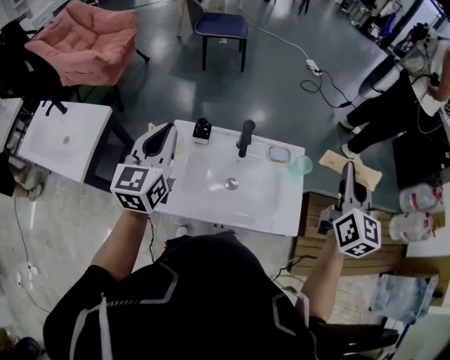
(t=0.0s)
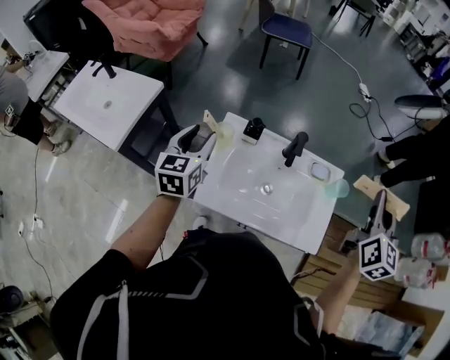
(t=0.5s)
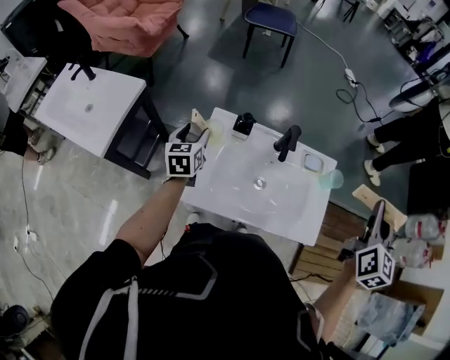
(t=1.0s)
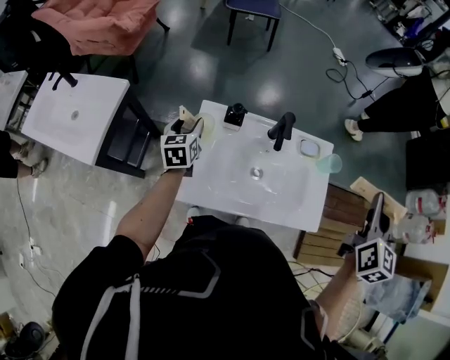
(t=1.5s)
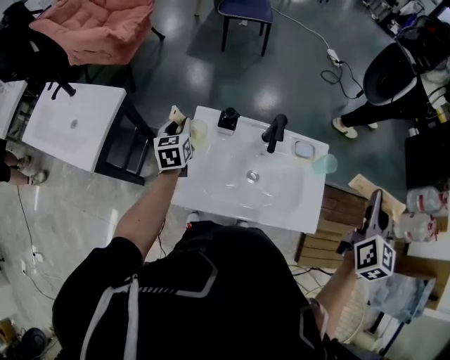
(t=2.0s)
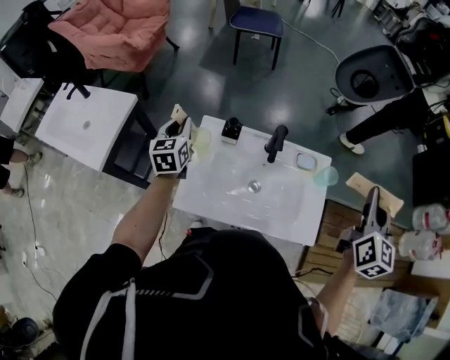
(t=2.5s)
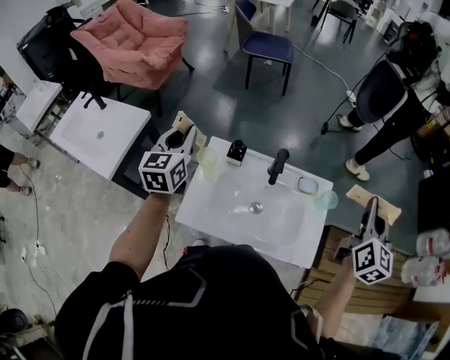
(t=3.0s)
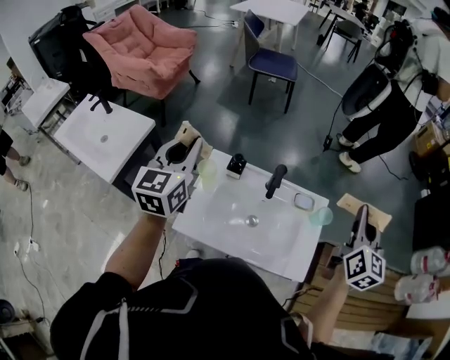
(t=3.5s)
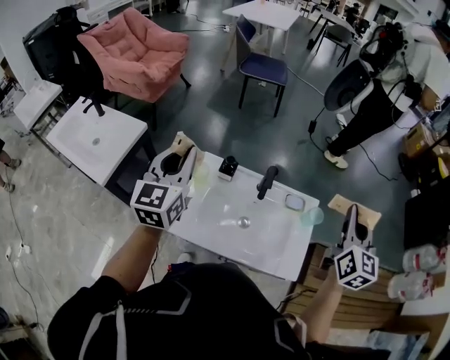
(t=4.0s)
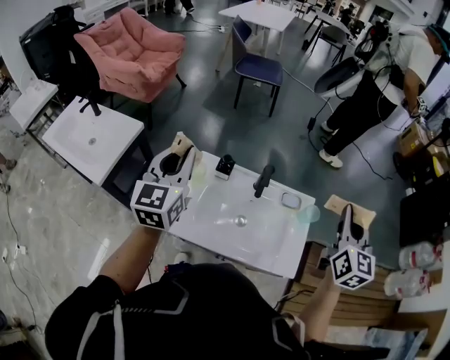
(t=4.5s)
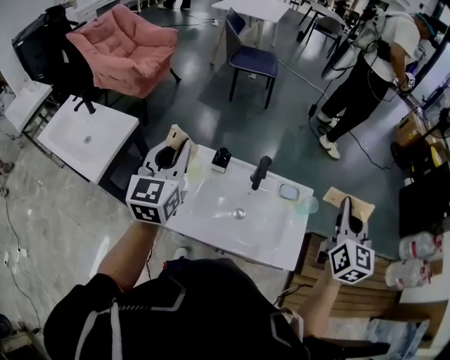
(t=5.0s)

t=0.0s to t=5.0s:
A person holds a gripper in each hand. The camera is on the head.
t=0.0s to t=2.5s: The left gripper travels downward, to the left and forward by some 20 cm, turns by some 20 degrees, and opens, then closes again.
t=2.5s to t=5.0s: The left gripper heads upward and backward, covering some 20 cm.

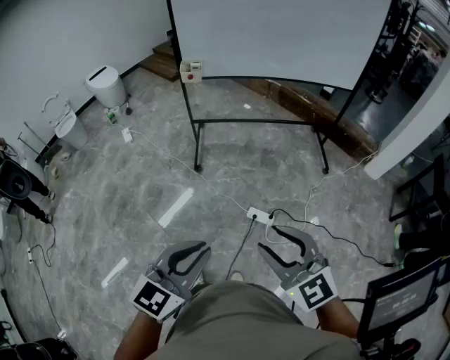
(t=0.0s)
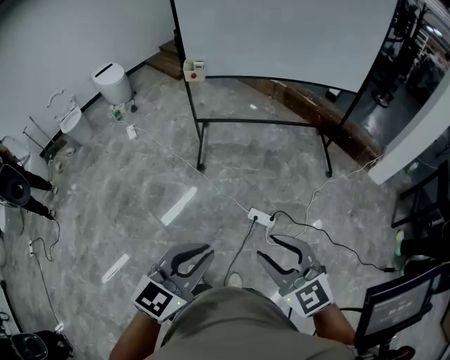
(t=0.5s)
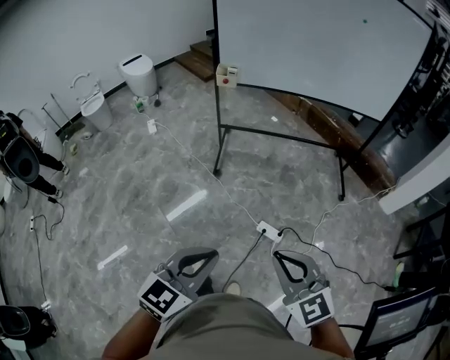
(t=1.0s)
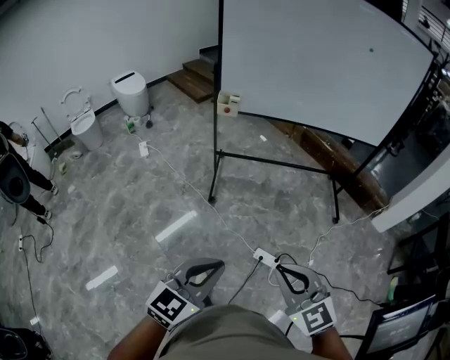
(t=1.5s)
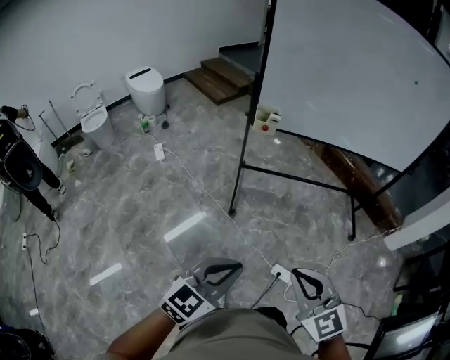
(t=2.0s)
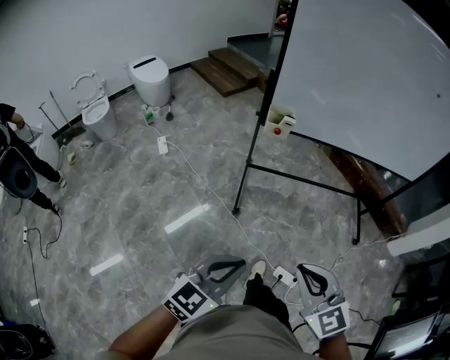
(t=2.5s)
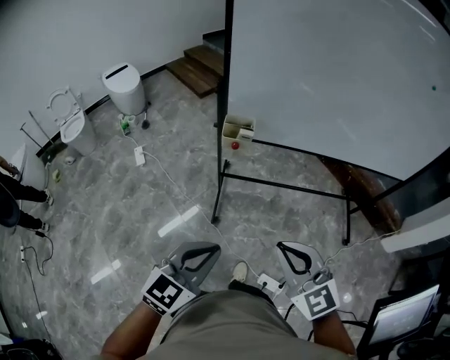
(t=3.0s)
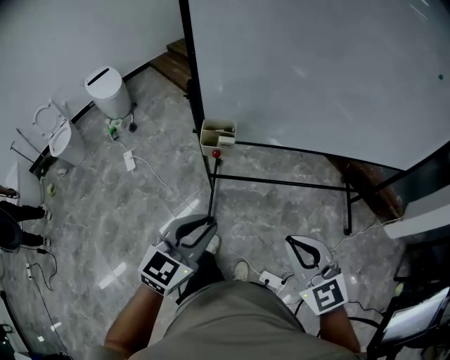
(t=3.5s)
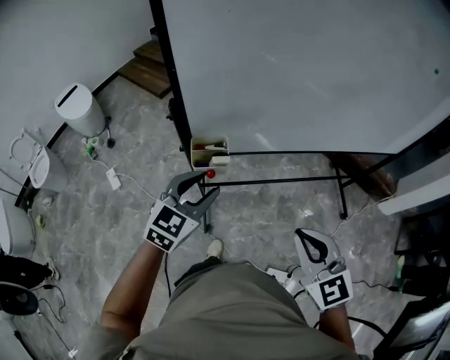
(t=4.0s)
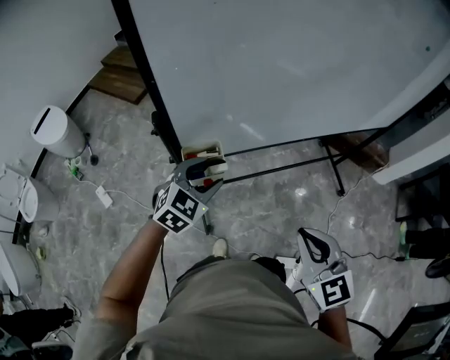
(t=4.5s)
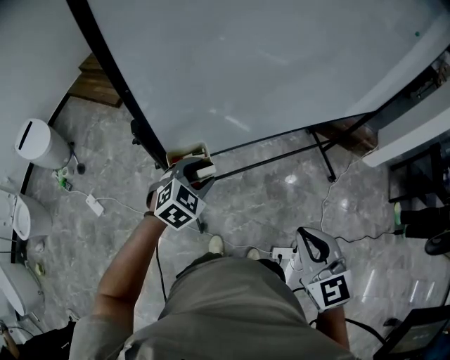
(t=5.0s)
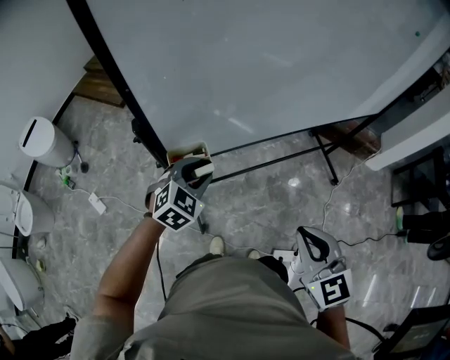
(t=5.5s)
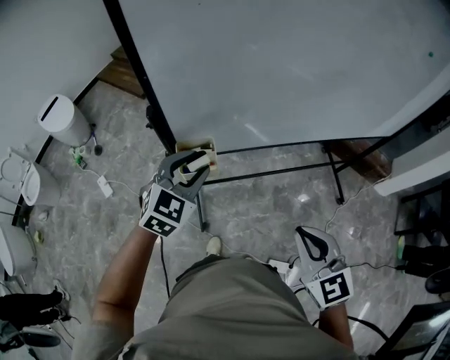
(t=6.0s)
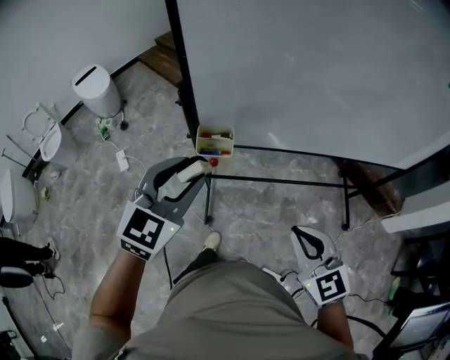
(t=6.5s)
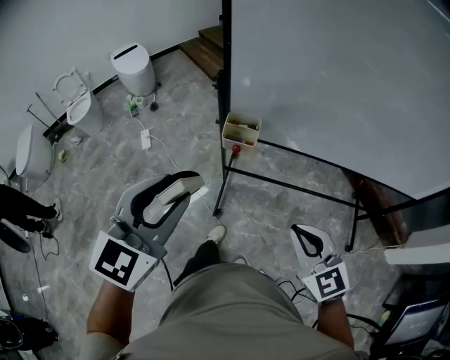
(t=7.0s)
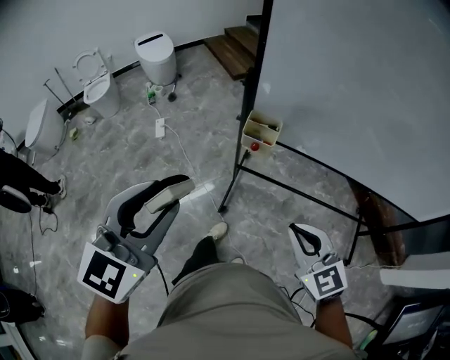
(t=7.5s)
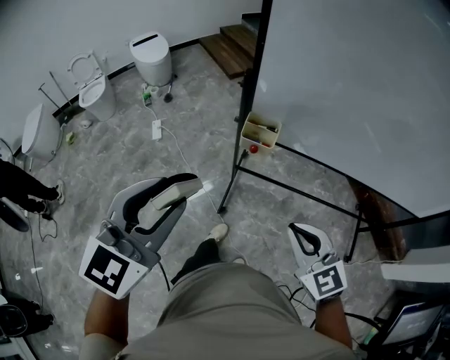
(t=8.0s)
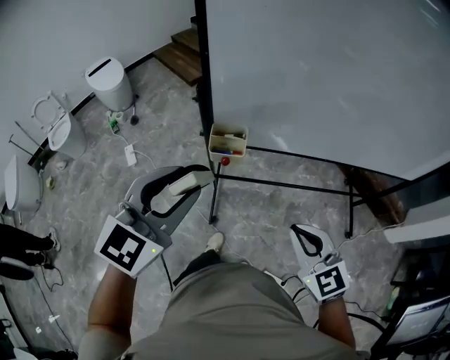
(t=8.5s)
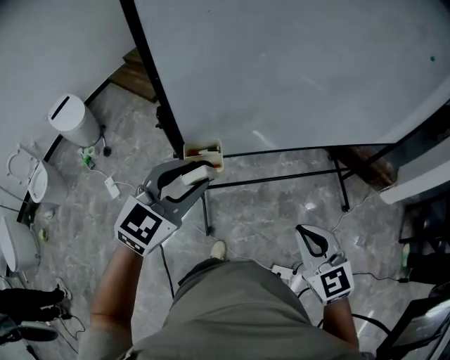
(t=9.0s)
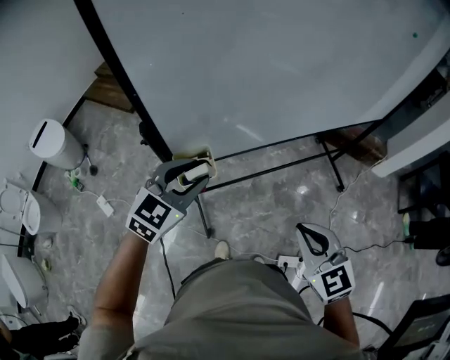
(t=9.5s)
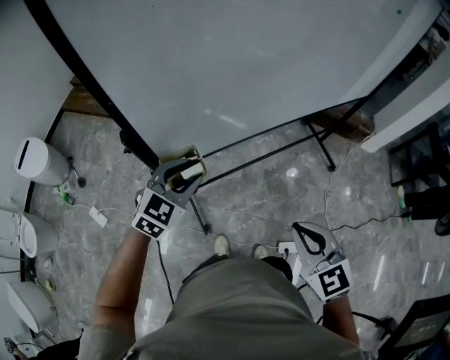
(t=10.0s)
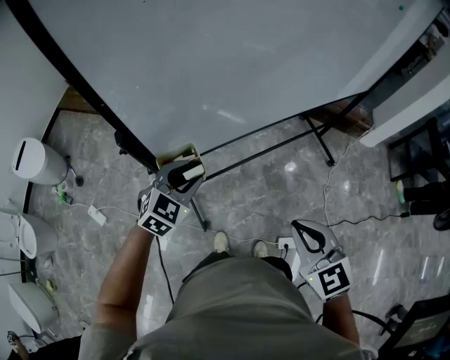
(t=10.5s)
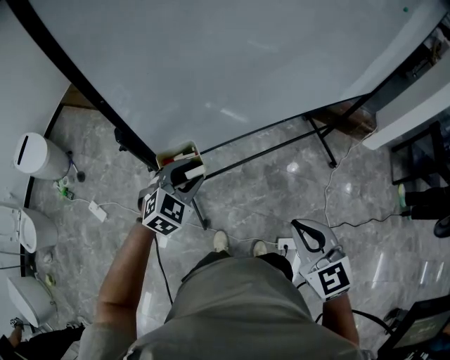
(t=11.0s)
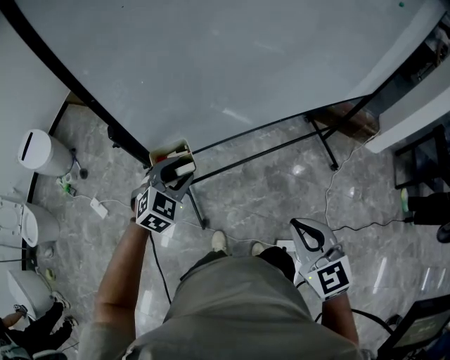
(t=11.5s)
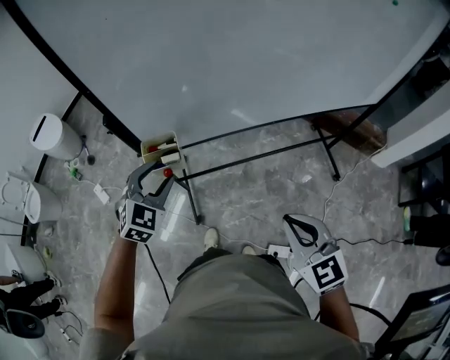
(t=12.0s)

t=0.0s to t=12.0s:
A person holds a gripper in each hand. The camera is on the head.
t=0.0s to t=2.0s: The two grippers go approximately 30 cm forward and to the left. The right gripper closes.
t=2.0s to t=4.0s: The pair of grippers is taken forward, about 50 cm. The left gripper opens up.
t=4.0s to t=6.0s: The left gripper travels forward by approximately 5 cm, and goes downward and returns, about 10 cm each way.
t=6.0s to t=8.0s: The left gripper shifts by some 35 cm, and changes its angle by about 30 degrees, while the right gripper shifts by about 5 cm, and changes its angle by roughly 30 degrees.
t=8.0s to t=10.0s: The right gripper shifts by roughly 5 cm, and swivels some 50 degrees; the left gripper changes place by approximately 40 cm, and swivels about 50 degrees.
t=10.0s to t=12.0s: The left gripper changes its angle by some 30 degrees; the right gripper moves to the right, some 10 cm.

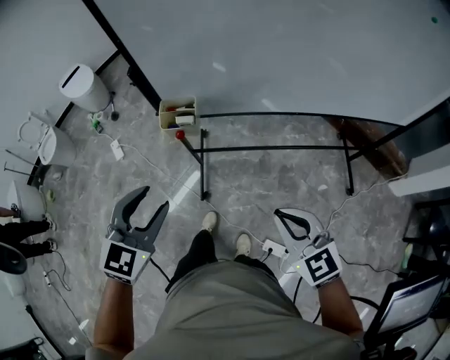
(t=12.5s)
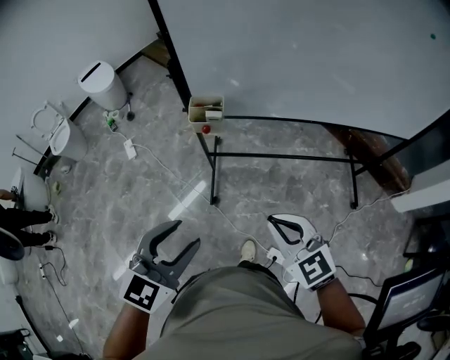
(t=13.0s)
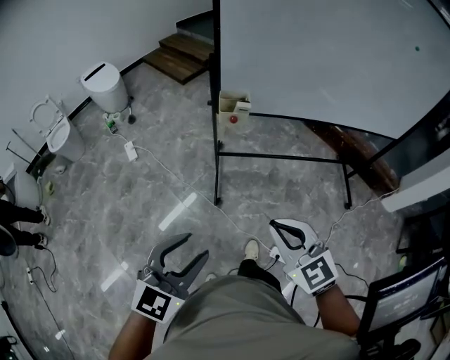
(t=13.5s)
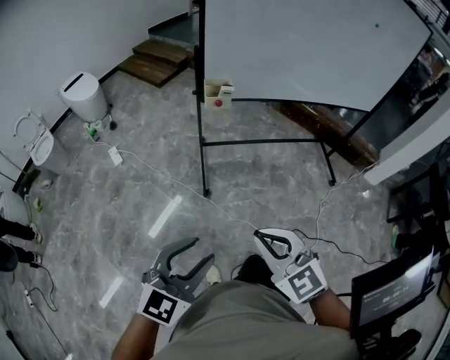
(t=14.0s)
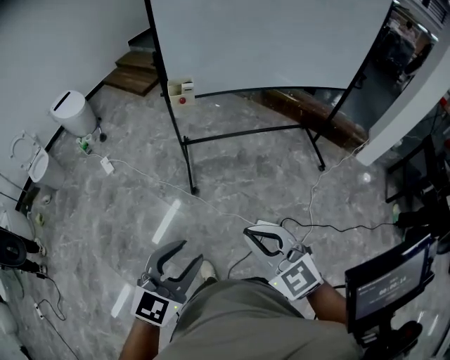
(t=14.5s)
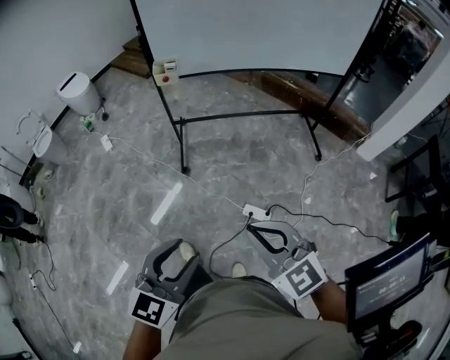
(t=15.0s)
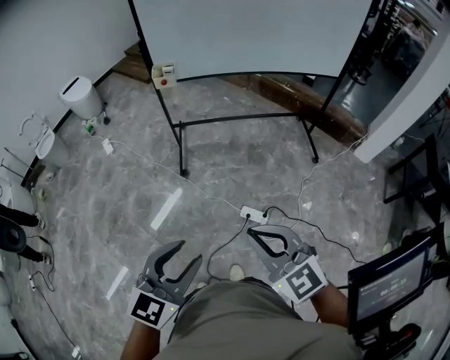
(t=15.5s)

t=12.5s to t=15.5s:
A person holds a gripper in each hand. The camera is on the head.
t=12.5s to t=14.0s: The right gripper heads backward and to the left, covering about 40 cm, while the left gripper heads backward, covering about 35 cm, and turns by about 20 degrees.
t=14.0s to t=15.5s: Both grippers travel together to the right and backward, some 30 cm.

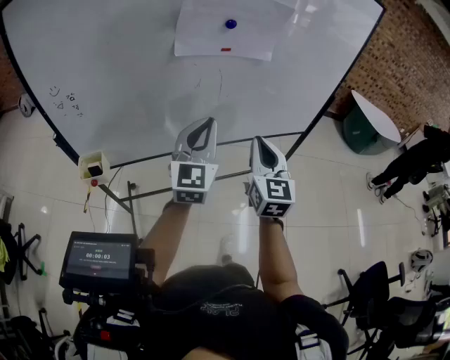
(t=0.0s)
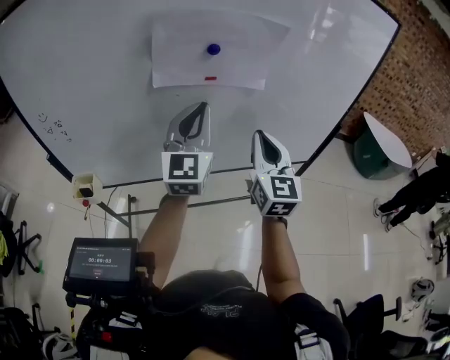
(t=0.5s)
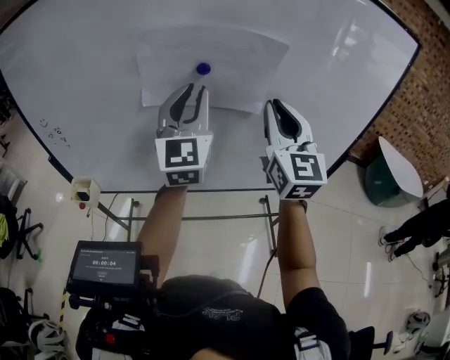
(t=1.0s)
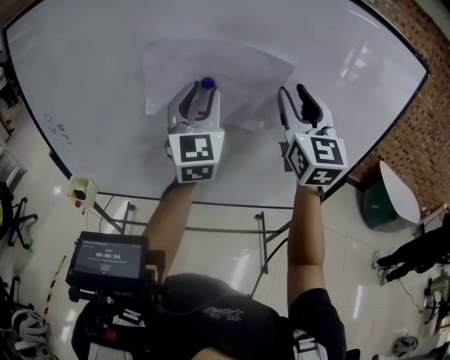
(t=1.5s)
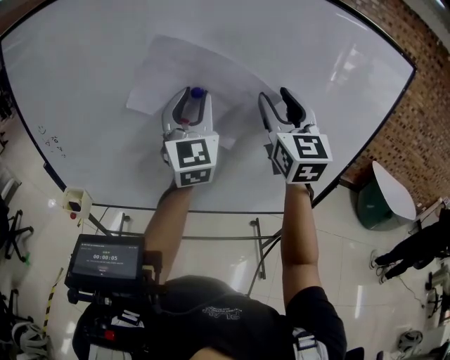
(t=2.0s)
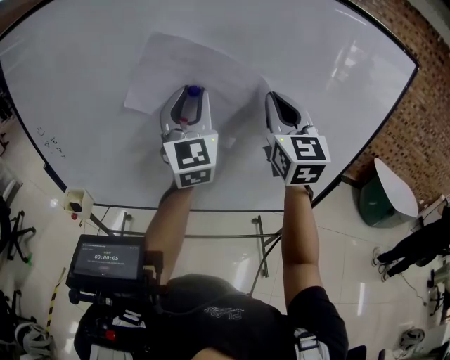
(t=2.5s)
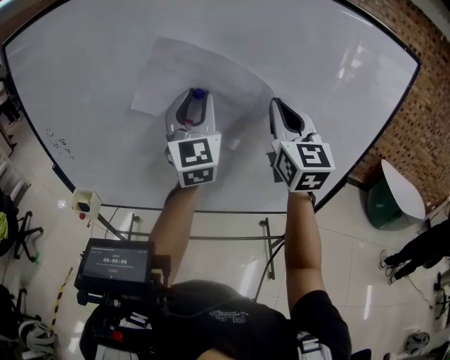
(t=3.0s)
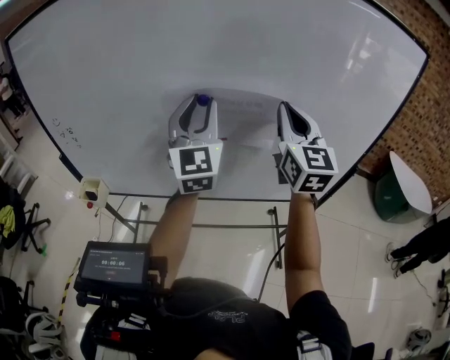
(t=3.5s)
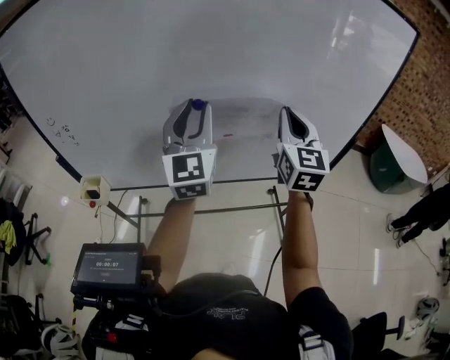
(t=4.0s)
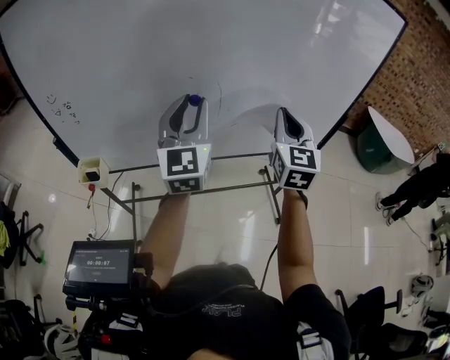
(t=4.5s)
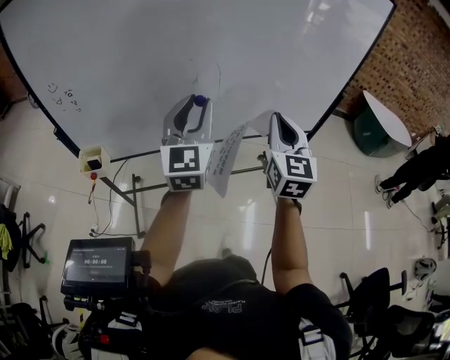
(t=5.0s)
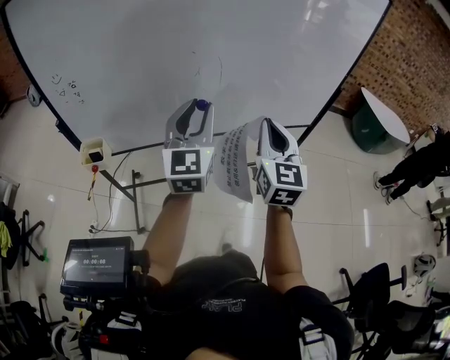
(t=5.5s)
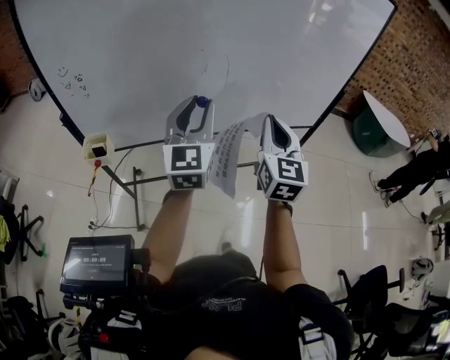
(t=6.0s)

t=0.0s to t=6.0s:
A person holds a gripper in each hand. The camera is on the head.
t=0.0s to t=2.0s: The left gripper shifts by roughly 25 cm, swivels approximately 30 degrees, and opens up; the right gripper ends up approximately 35 cm from where it was, swivels some 30 degrees, and opens up.
t=2.0s to t=4.0s: Both grippers move downward and backward, about 10 cm. The right gripper closes up.
t=4.0s to t=6.0s: The grippers both shift backward and downward by approximately 20 cm.
